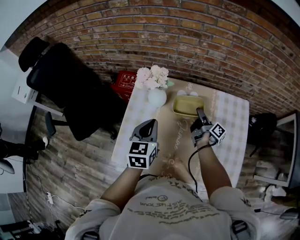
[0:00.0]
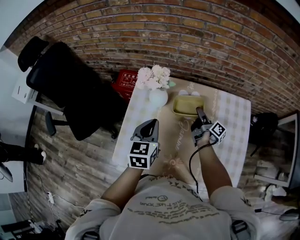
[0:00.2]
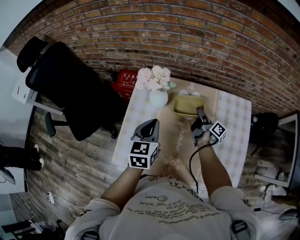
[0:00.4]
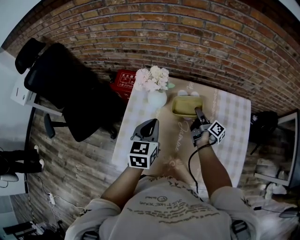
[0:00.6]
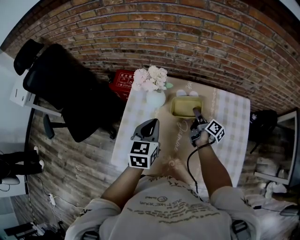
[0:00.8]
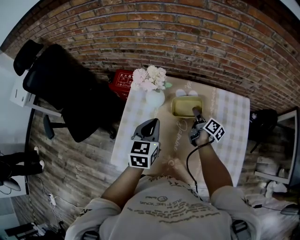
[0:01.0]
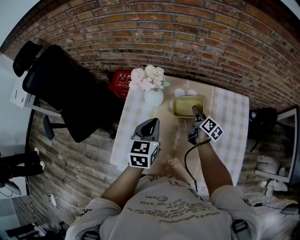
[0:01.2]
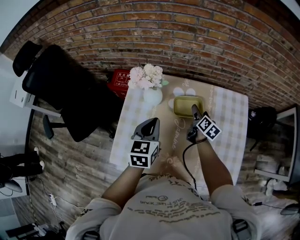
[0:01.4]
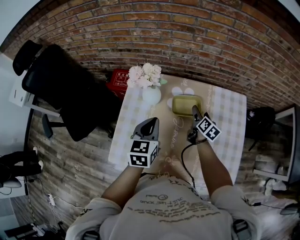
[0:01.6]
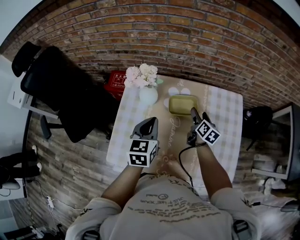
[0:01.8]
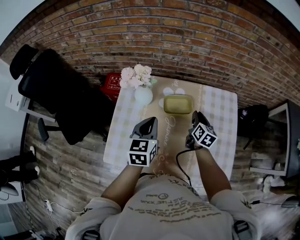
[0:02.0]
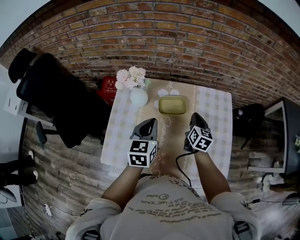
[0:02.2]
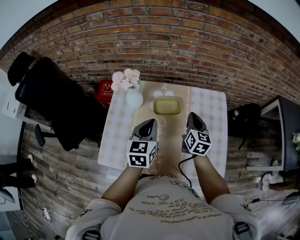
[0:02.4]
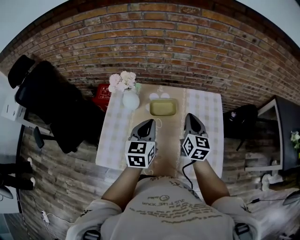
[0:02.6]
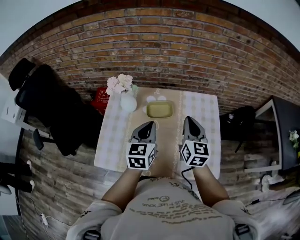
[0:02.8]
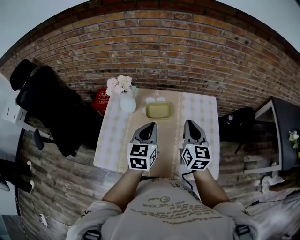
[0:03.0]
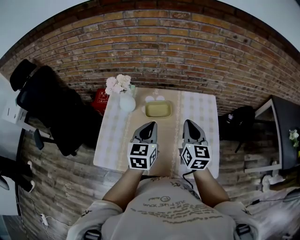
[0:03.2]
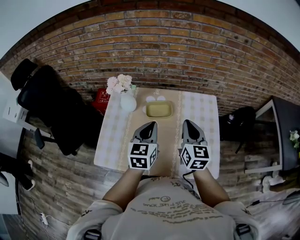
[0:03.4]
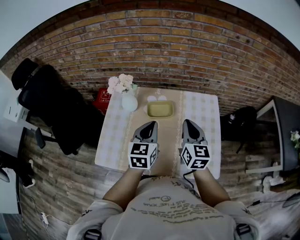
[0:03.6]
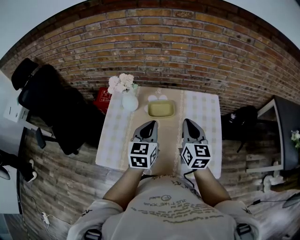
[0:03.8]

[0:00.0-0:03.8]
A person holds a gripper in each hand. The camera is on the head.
0:00.0 to 0:01.2: The right gripper rotates roughly 30 degrees.
0:01.2 to 0:02.6: The left gripper heads to the right and upward, covering about 10 cm; the right gripper heads upward and backward, covering some 25 cm, twists about 40 degrees counterclockwise, seen from behind, and closes up.
0:02.6 to 0:03.8: The right gripper changes place by roughly 5 cm.

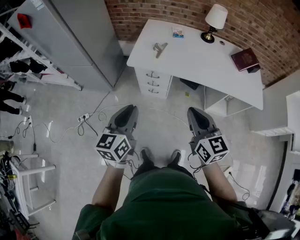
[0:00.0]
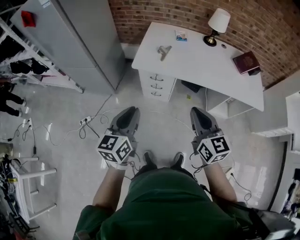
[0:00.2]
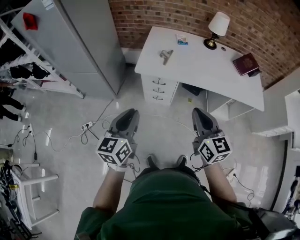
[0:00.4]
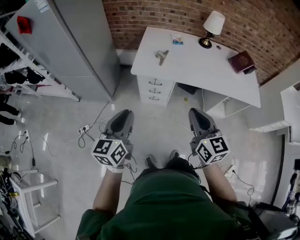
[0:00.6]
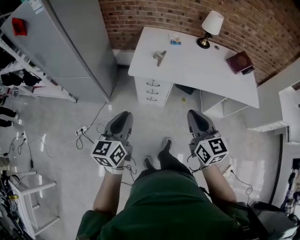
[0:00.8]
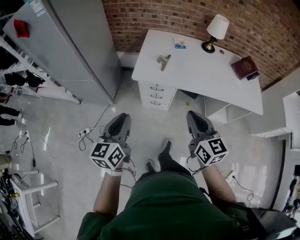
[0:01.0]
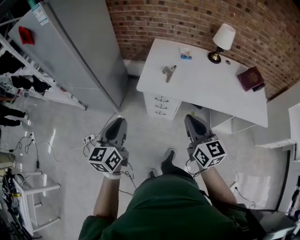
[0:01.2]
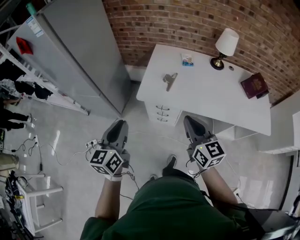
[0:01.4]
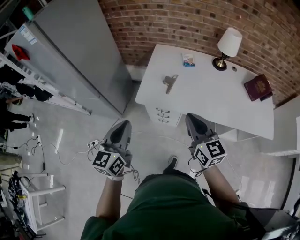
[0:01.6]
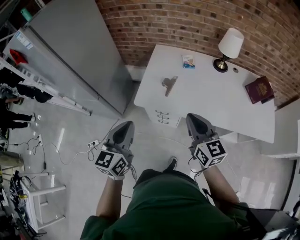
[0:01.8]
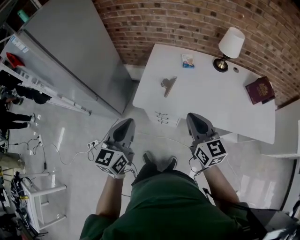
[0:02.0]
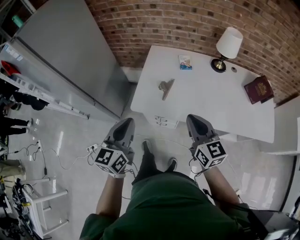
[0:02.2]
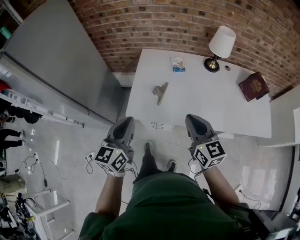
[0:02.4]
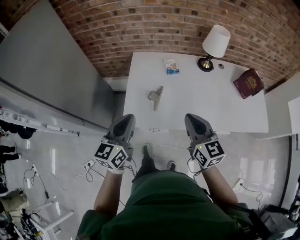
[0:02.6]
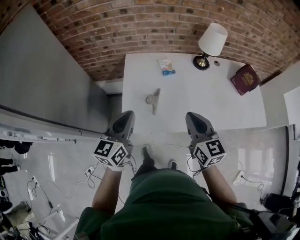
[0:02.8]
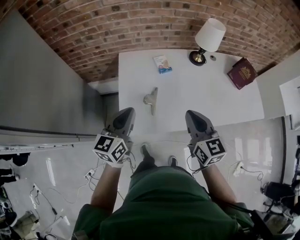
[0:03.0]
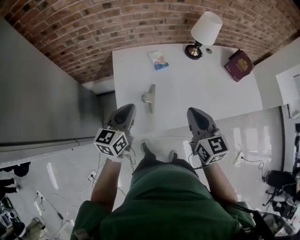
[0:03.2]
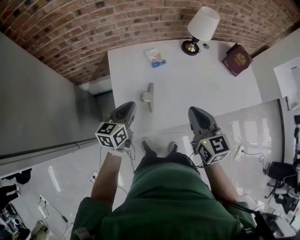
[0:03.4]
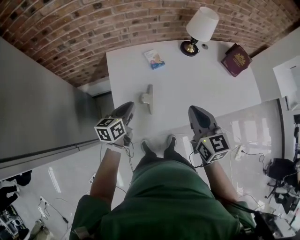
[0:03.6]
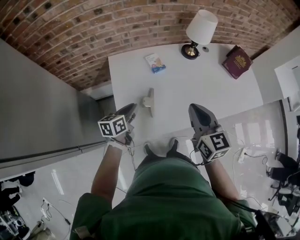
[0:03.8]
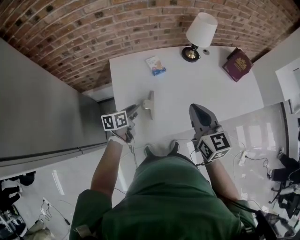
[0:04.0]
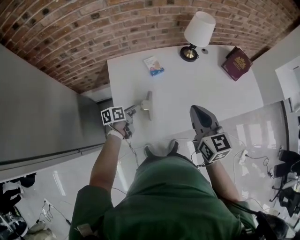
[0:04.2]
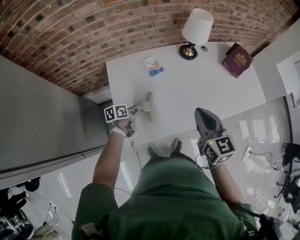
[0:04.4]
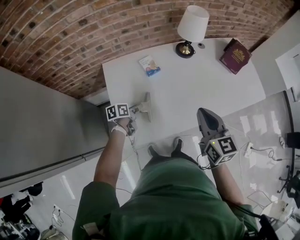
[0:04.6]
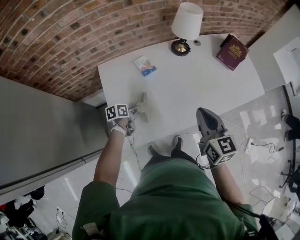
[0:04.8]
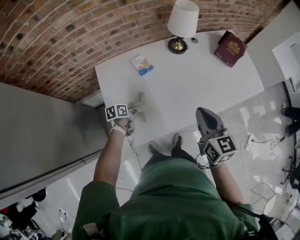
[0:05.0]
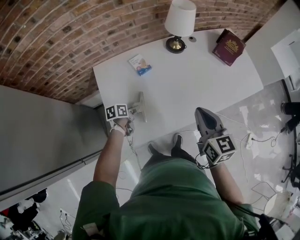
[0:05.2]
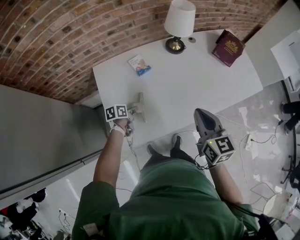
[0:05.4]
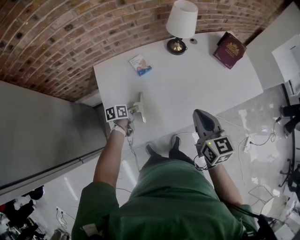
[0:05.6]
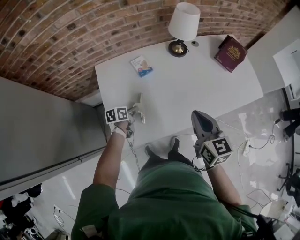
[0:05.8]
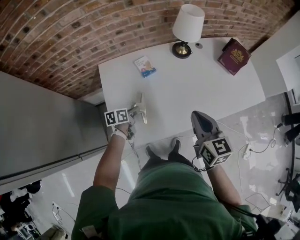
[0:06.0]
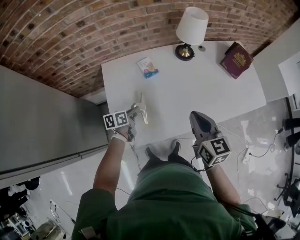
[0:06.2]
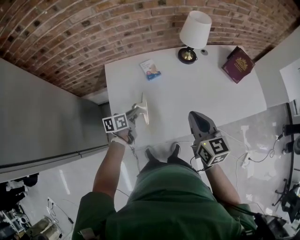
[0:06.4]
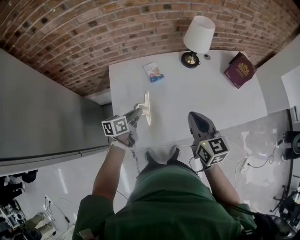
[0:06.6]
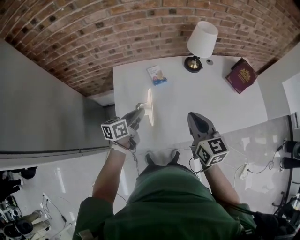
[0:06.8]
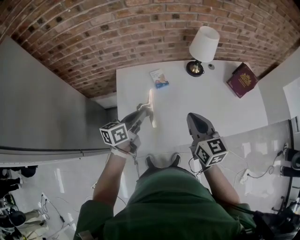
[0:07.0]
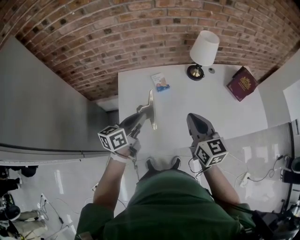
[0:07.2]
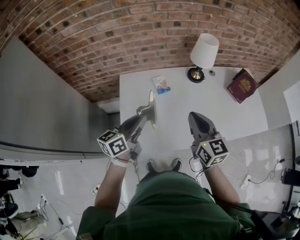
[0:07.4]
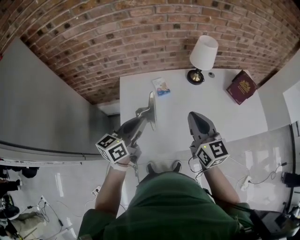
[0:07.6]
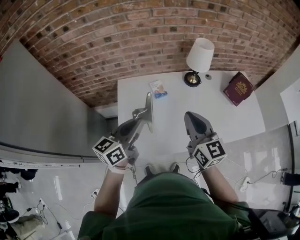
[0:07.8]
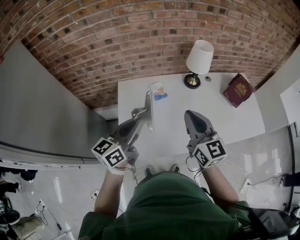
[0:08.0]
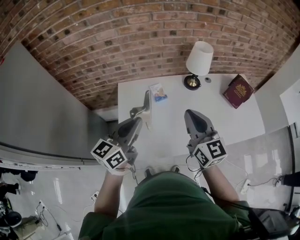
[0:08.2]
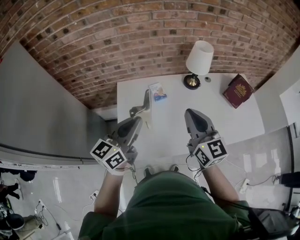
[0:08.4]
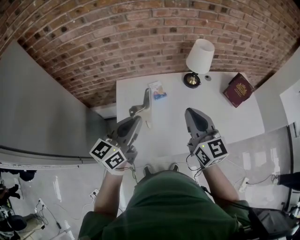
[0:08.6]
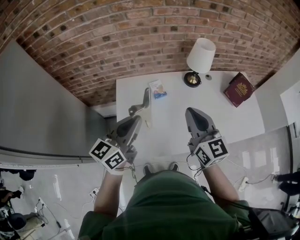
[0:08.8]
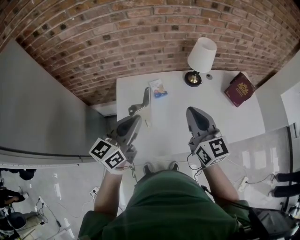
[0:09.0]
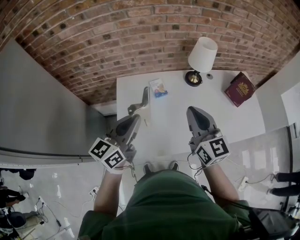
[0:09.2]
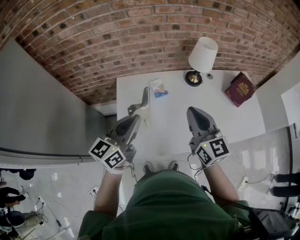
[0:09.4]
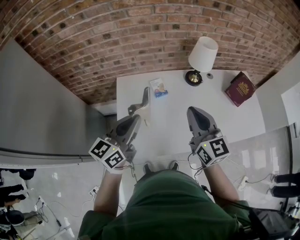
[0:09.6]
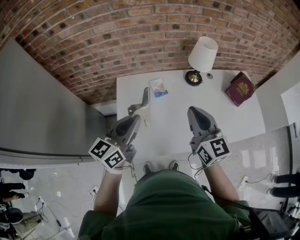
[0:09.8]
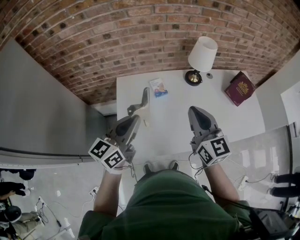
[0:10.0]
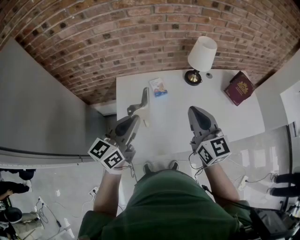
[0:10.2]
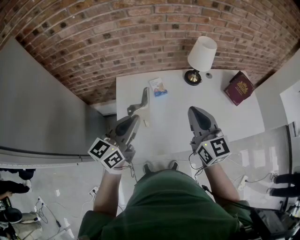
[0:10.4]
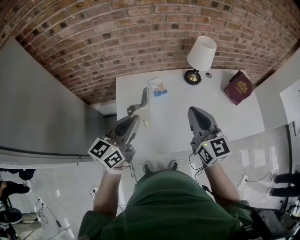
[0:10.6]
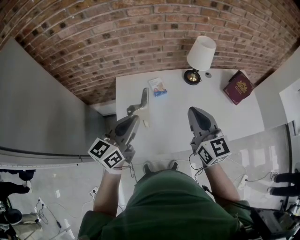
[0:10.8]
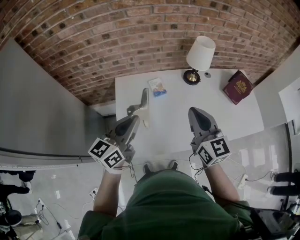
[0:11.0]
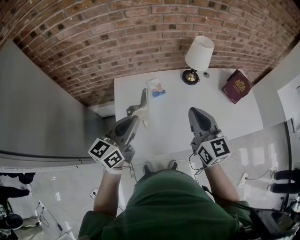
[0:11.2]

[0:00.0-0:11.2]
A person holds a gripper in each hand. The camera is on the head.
0:00.0 to 0:01.6: Both grippers travel together forward, about 20 cm.
0:01.6 to 0:03.2: The left gripper ends up about 35 cm from where it was, and rotates roughly 30 degrees, while the right gripper shifts by roughly 20 cm, and turns by some 30 degrees.
0:03.2 to 0:04.8: The right gripper travels to the right by approximately 10 cm; the left gripper is displaced downward and forward by about 25 cm, swivels some 50 degrees, and opens its fingers.
0:04.8 to 0:06.4: The left gripper shifts about 10 cm upward, and closes its fingers.
0:06.4 to 0:08.0: The right gripper travels upward by roughly 10 cm, while the left gripper goes roughly 30 cm upward, and rotates approximately 40 degrees.
0:08.0 to 0:11.2: The grippers stay close to where they were, moving slightly.

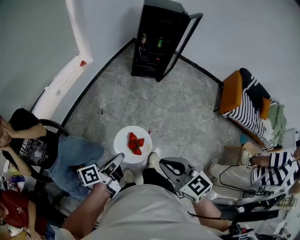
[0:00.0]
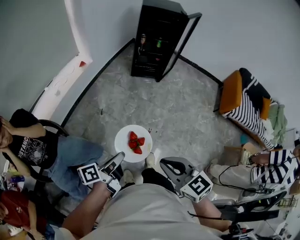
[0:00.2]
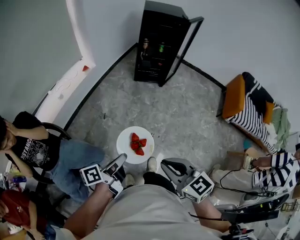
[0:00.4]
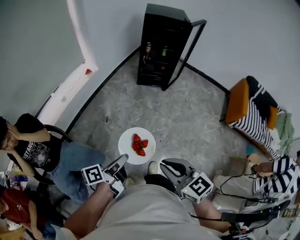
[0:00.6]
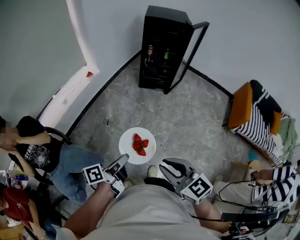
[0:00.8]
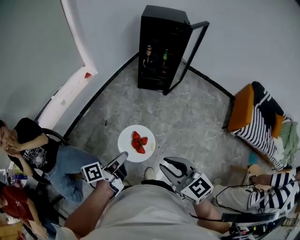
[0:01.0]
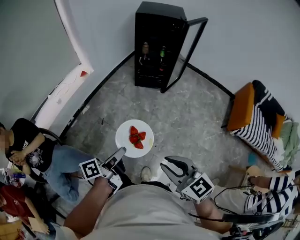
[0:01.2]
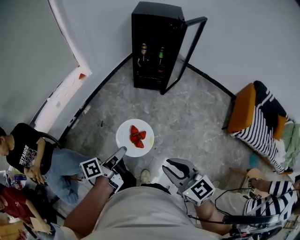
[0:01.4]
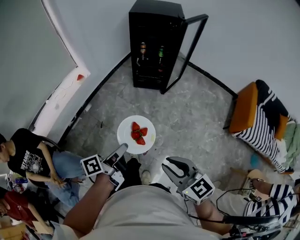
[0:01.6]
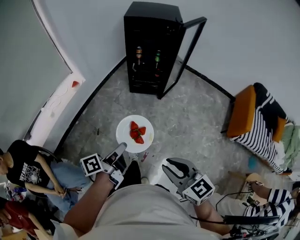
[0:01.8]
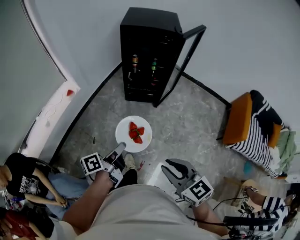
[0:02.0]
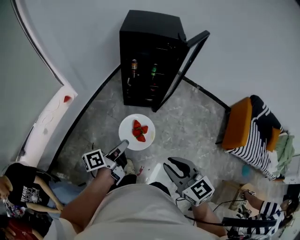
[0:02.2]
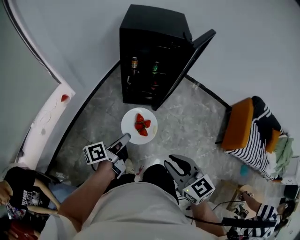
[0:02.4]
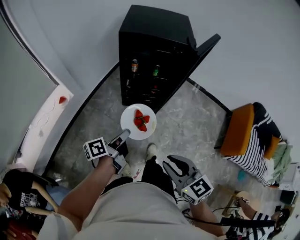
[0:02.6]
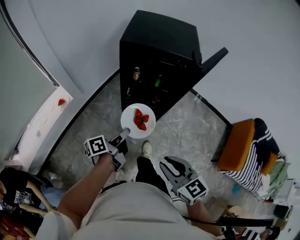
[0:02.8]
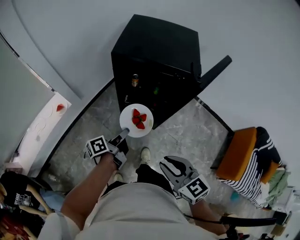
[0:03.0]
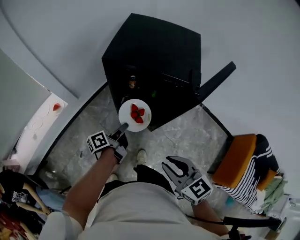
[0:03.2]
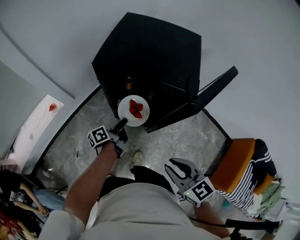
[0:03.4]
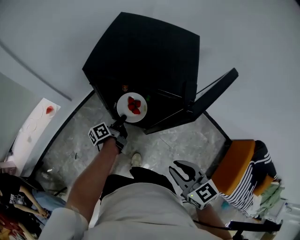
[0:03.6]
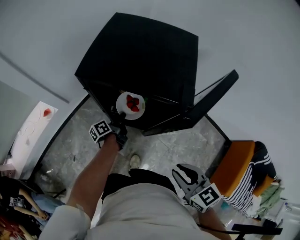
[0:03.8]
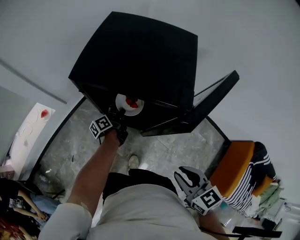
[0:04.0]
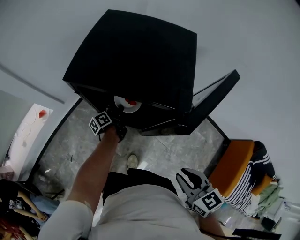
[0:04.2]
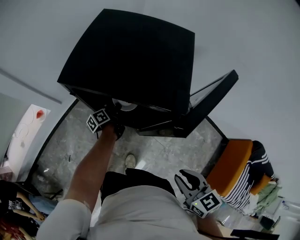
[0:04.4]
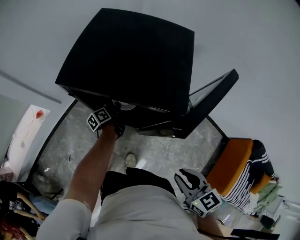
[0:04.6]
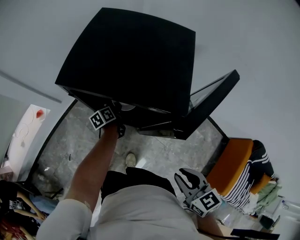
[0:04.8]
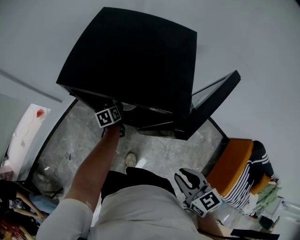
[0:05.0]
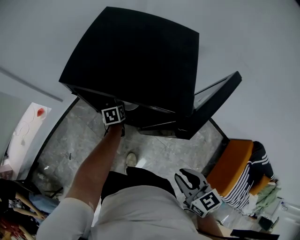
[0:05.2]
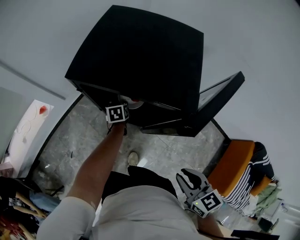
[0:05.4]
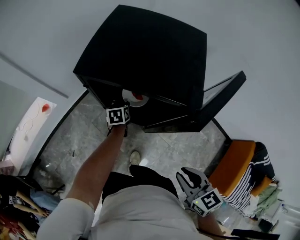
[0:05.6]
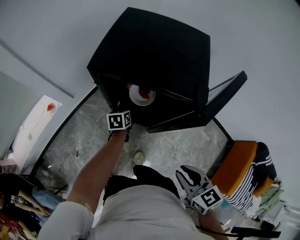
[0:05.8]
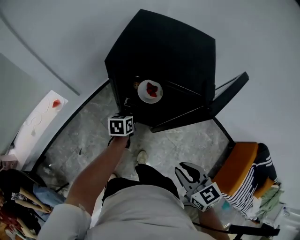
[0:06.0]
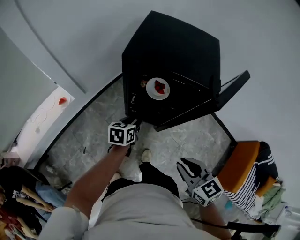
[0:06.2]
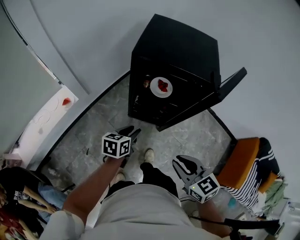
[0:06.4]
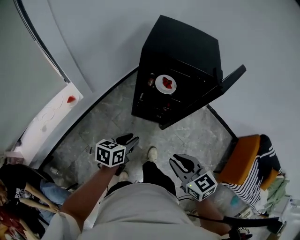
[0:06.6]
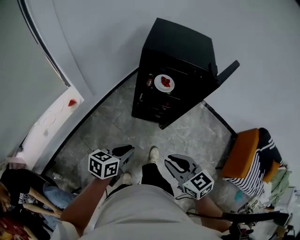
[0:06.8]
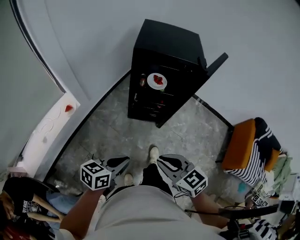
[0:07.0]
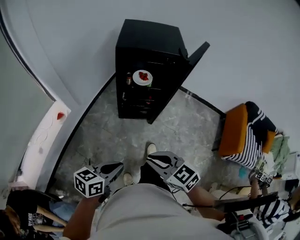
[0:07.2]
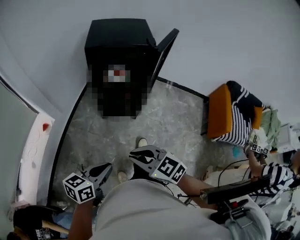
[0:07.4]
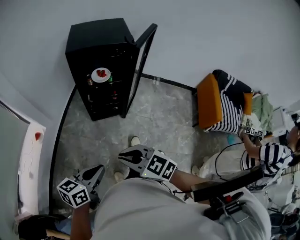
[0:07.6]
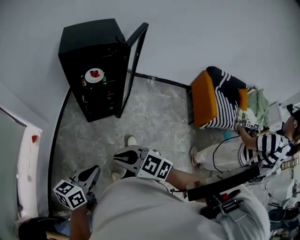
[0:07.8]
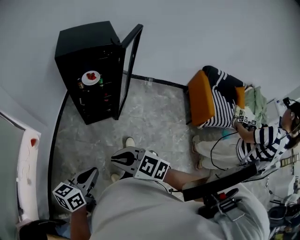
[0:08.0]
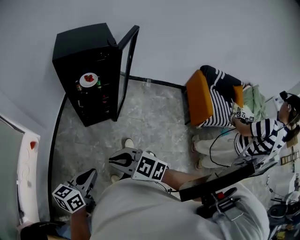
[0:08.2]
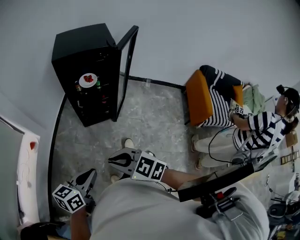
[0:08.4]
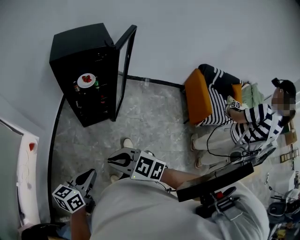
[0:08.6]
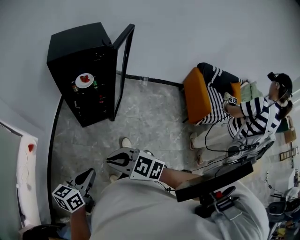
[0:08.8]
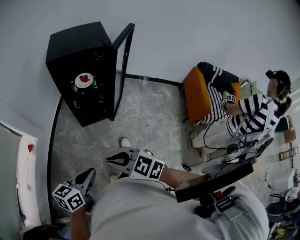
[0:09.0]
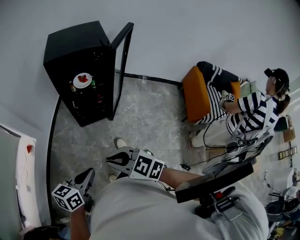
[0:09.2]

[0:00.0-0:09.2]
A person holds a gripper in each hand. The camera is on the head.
0:00.0 to 0:01.6: The grippers both shift to the right and forward by some 25 cm.
0:01.6 to 0:03.0: The two grippers travel together, forward, approximately 60 cm.
0:03.0 to 0:04.6: The right gripper shifts some 25 cm to the right and forward; the left gripper moves forward, downward and to the right, approximately 35 cm, and changes its angle by roughly 20 degrees.
0:04.6 to 0:06.2: The right gripper goes some 15 cm to the left. Meanwhile the left gripper shifts some 20 cm backward, upward and to the left, twists approximately 40 degrees clockwise, seen from behind, and opens its fingers.
0:06.2 to 0:07.6: The left gripper heads backward, covering approximately 40 cm, changes its angle by approximately 40 degrees, and closes. Meanwhile the right gripper moves backward and to the left, about 30 cm.
0:07.6 to 0:09.2: The grippers make only small movements.
